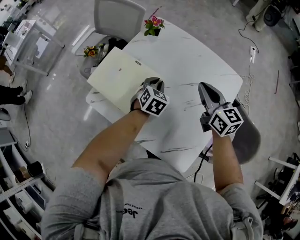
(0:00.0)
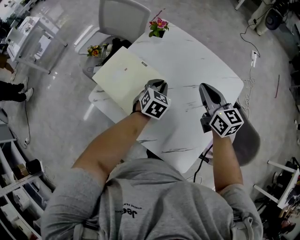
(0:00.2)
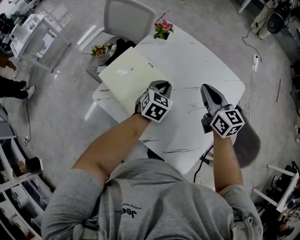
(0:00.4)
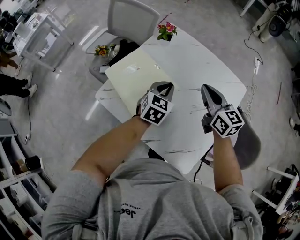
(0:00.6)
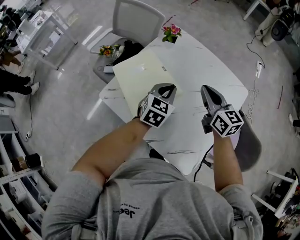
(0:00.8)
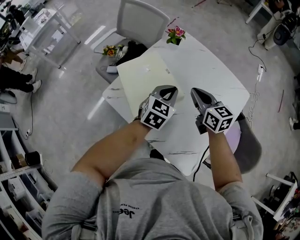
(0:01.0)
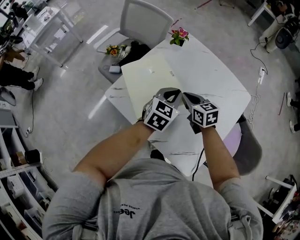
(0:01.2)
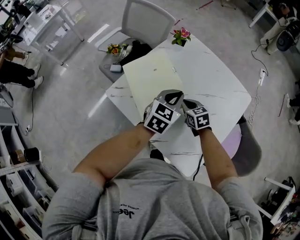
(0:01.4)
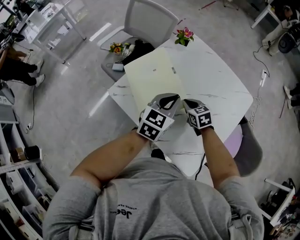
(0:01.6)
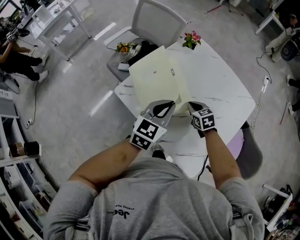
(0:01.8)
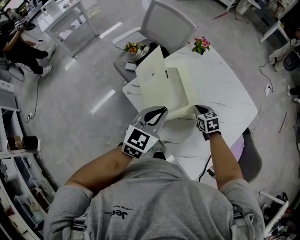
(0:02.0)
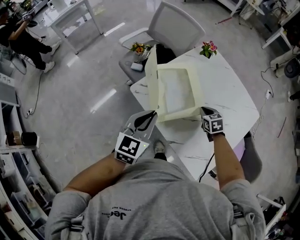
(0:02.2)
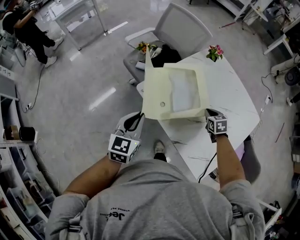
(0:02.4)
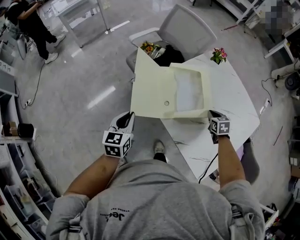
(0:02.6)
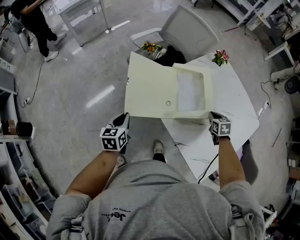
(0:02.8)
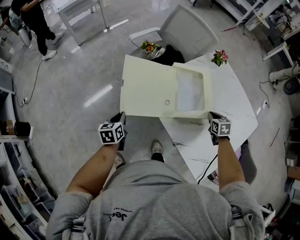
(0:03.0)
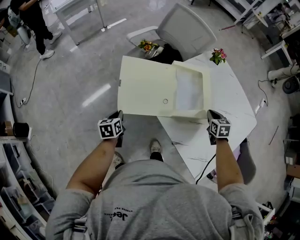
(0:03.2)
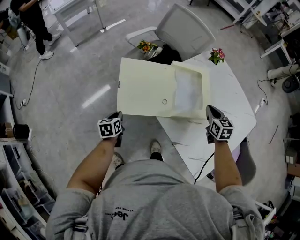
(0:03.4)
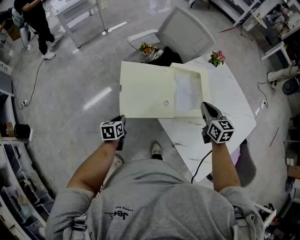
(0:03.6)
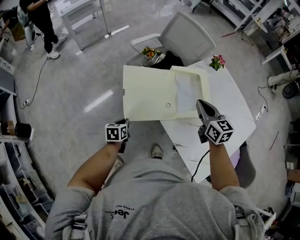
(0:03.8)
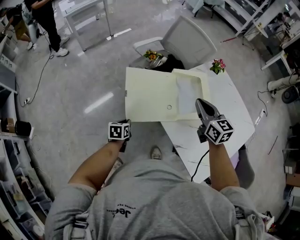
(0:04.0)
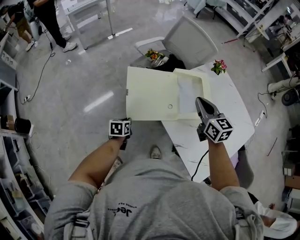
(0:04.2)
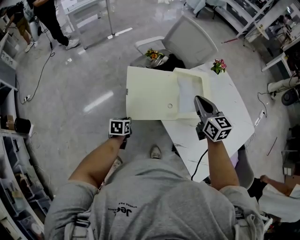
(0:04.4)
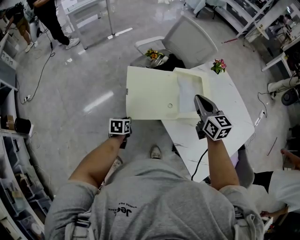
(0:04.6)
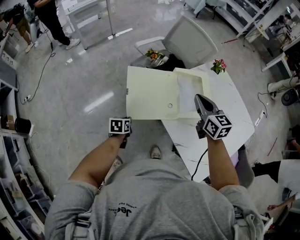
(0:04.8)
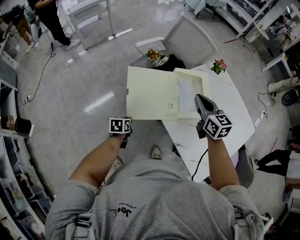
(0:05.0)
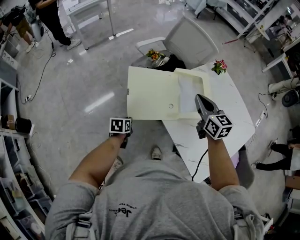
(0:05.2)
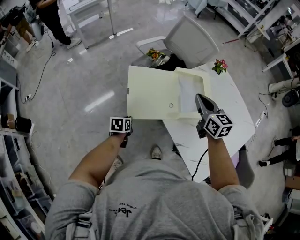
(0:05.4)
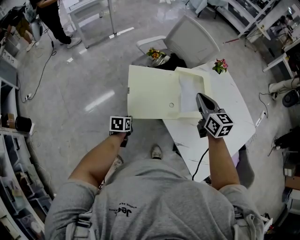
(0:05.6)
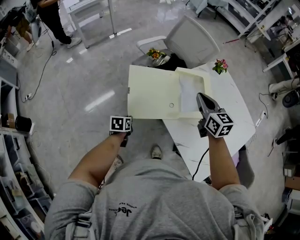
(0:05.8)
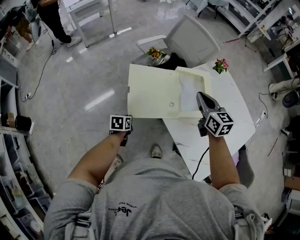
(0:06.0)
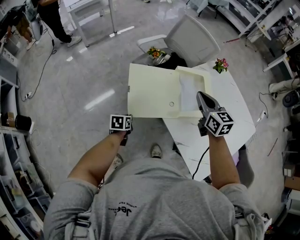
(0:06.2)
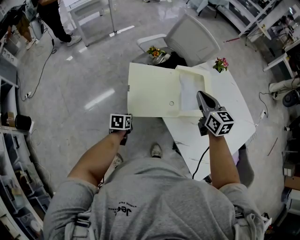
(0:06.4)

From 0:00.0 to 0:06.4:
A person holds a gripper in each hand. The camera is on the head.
From 0:00.0 to 0:01.6: The right gripper heads downward and to the left, covering some 20 cm, and angles its fingers downward, by roughly 30 degrees, while the left gripper heads upward, backward and to the left, covering roughly 15 cm, and turns by some 30 degrees.
From 0:01.6 to 0:03.2: The left gripper heads to the left and downward, covering roughly 50 cm, and rotates approximately 50 degrees.
From 0:03.2 to 0:04.8: The right gripper moves upward and to the left, about 25 cm, and points its fingers approximately 30 degrees further upward.
From 0:04.8 to 0:06.4: The two grippers keep their place.

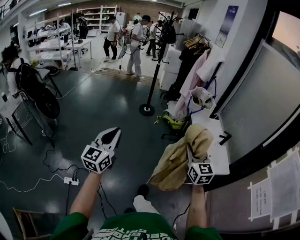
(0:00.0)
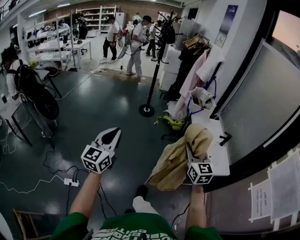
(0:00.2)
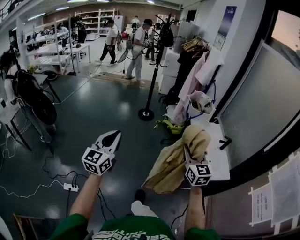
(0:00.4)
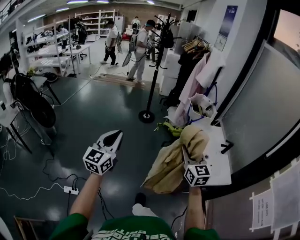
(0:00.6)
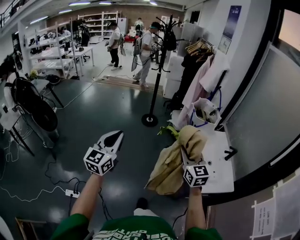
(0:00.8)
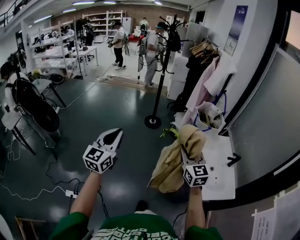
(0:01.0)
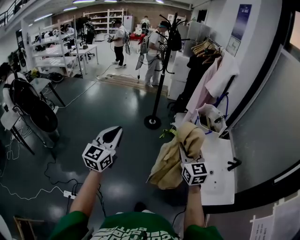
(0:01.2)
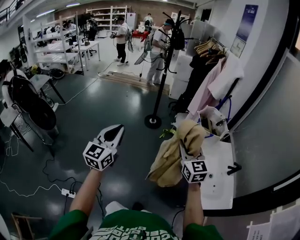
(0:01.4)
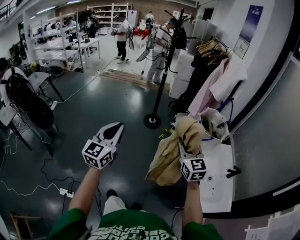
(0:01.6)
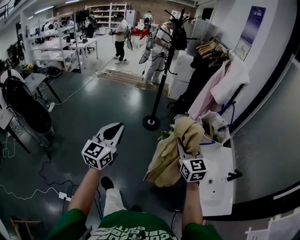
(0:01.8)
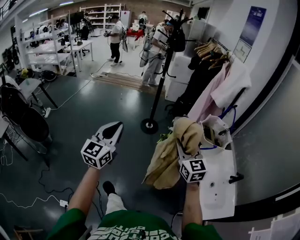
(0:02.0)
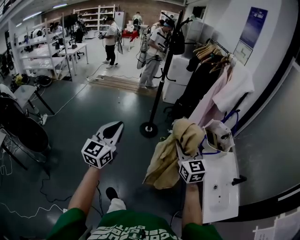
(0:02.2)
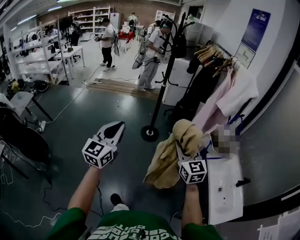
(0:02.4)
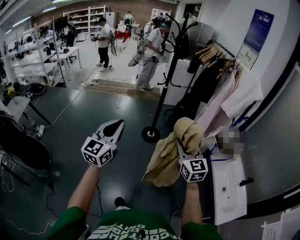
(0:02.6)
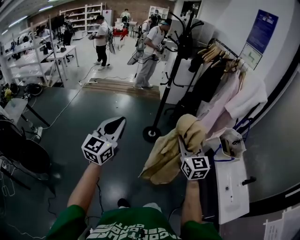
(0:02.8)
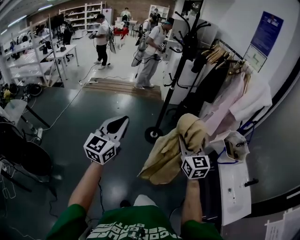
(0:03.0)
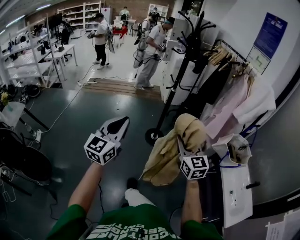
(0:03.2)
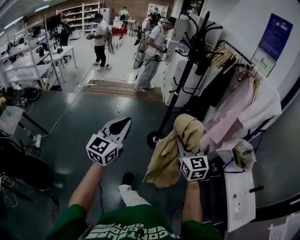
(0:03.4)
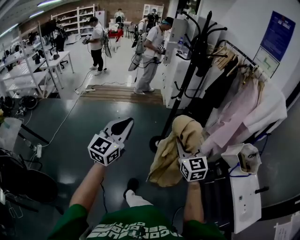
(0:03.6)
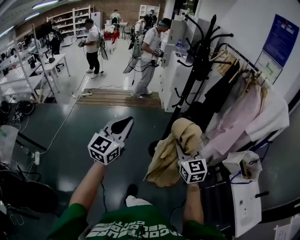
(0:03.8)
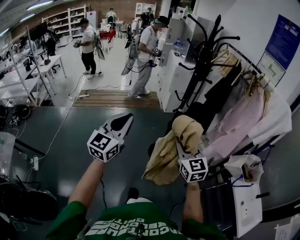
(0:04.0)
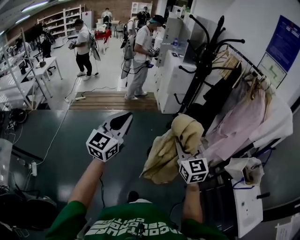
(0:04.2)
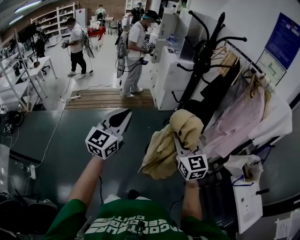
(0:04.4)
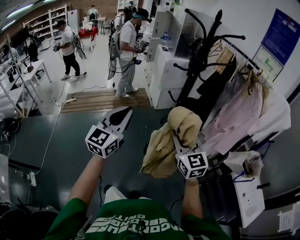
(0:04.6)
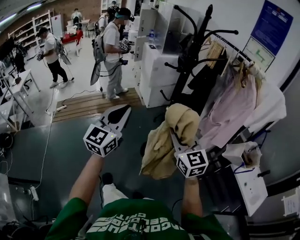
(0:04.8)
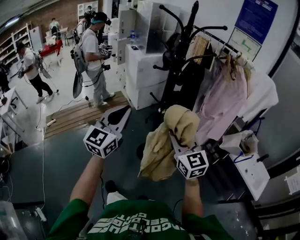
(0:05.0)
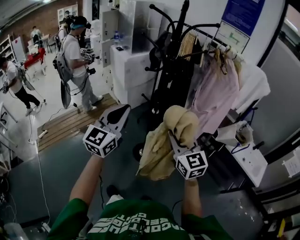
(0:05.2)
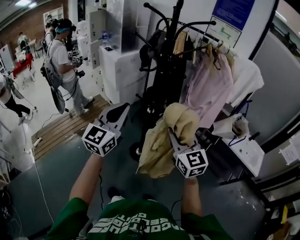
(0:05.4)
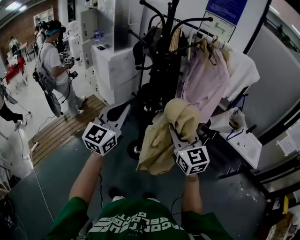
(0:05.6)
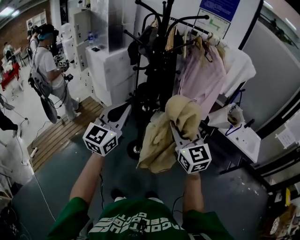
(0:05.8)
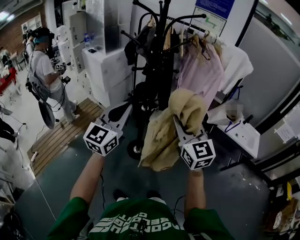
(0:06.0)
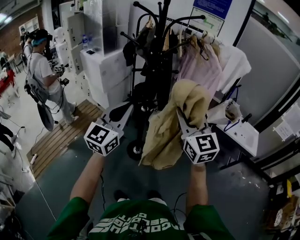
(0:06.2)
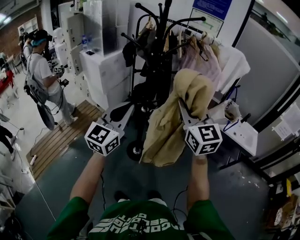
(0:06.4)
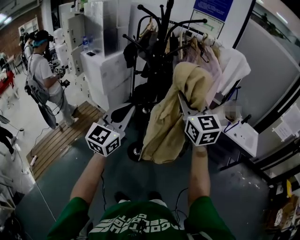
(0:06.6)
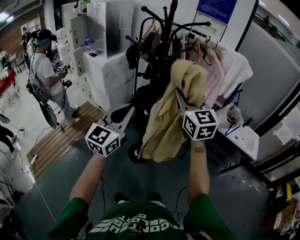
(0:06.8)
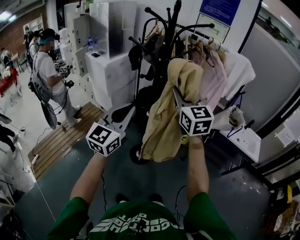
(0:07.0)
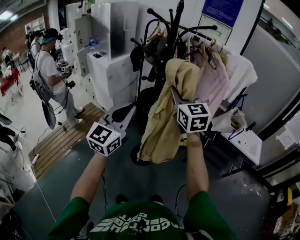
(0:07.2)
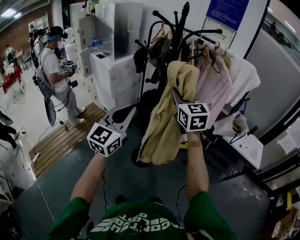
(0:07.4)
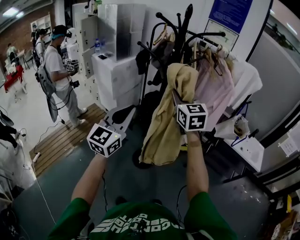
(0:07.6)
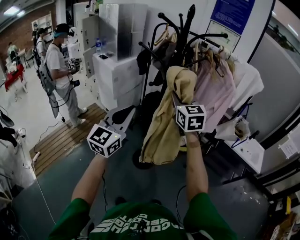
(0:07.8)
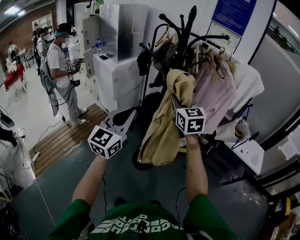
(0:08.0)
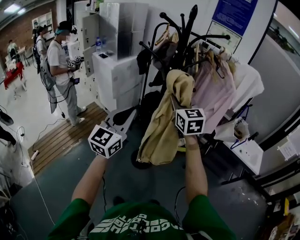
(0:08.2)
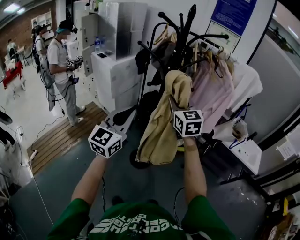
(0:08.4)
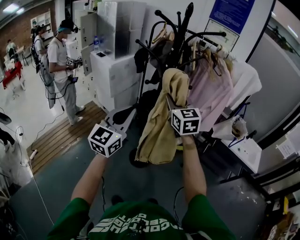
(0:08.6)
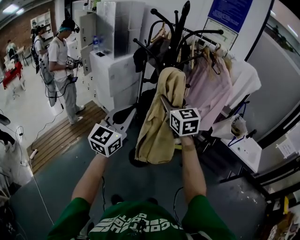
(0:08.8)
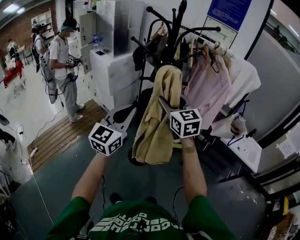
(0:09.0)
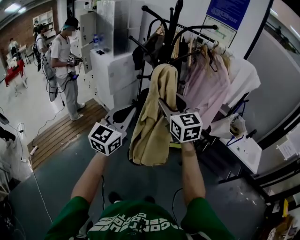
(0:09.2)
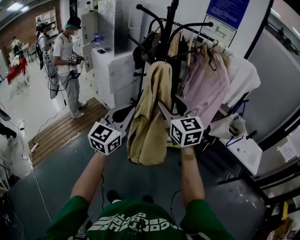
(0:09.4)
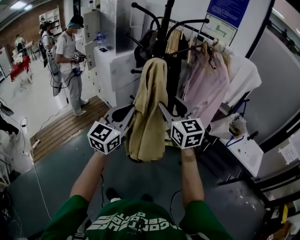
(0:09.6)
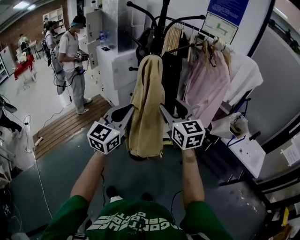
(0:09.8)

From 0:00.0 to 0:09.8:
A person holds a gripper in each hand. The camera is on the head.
From 0:00.0 to 0:01.4: Both grippers travel together forward, some 30 cm.
From 0:01.4 to 0:02.8: The two grippers go roughly 40 cm forward and to the left.
From 0:02.8 to 0:04.2: The pair of grippers is taken forward and to the left, roughly 40 cm.
From 0:04.2 to 0:05.6: The right gripper shifts by about 10 cm, and changes its angle by approximately 30 degrees; the left gripper ends up approximately 20 cm from where it was, and changes its angle by some 40 degrees.
From 0:05.6 to 0:07.0: The right gripper goes approximately 15 cm forward, upward and to the left.
From 0:07.0 to 0:08.4: The right gripper goes roughly 10 cm forward and downward.
From 0:08.4 to 0:09.8: The left gripper travels to the right by some 10 cm, while the right gripper moves backward and to the right, some 15 cm, and opens up.

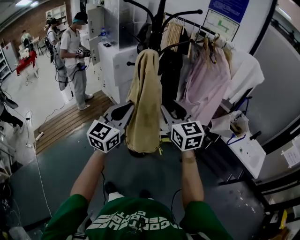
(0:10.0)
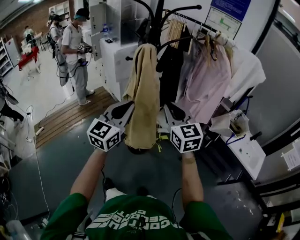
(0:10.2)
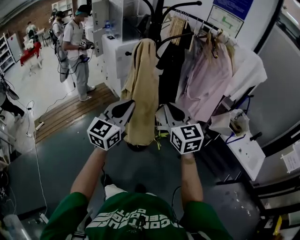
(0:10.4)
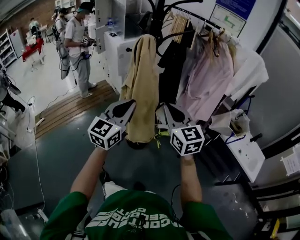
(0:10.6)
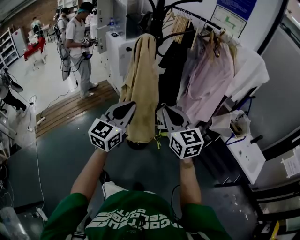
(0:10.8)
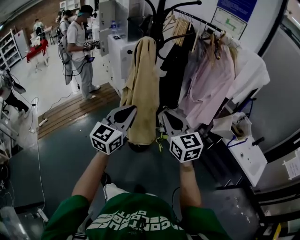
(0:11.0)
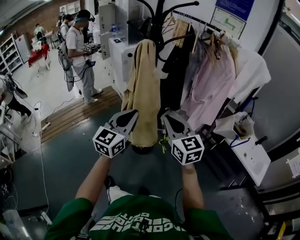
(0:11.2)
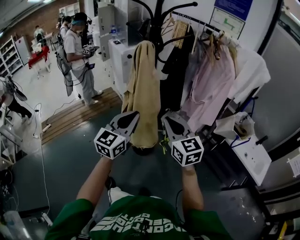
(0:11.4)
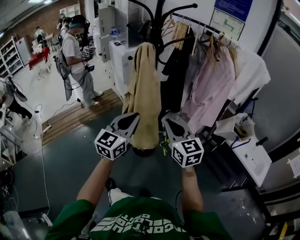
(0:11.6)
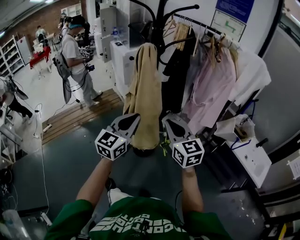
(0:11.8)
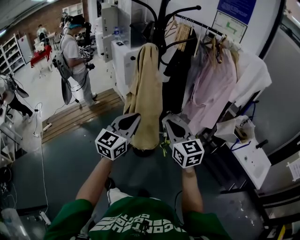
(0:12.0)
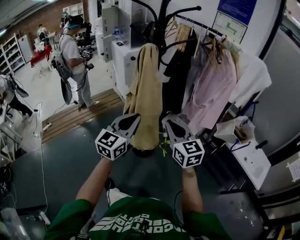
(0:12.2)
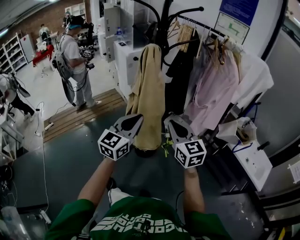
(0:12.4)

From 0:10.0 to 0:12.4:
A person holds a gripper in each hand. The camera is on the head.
From 0:10.0 to 0:11.2: The right gripper is displaced backward and downward by approximately 10 cm, and closes. Meanwhile the left gripper ends up roughly 10 cm from where it was.
From 0:11.2 to 0:12.4: The grippers move only a little.

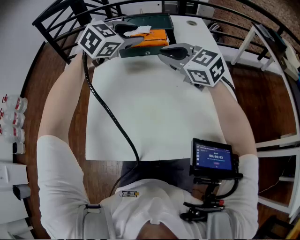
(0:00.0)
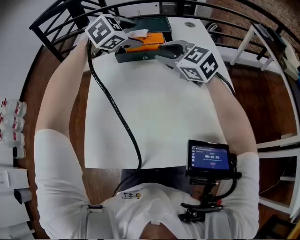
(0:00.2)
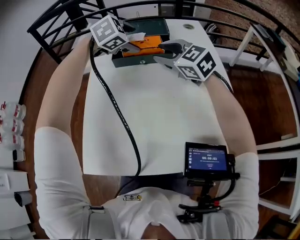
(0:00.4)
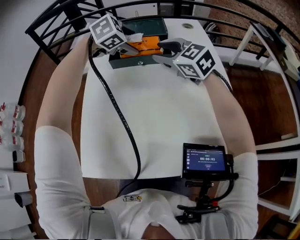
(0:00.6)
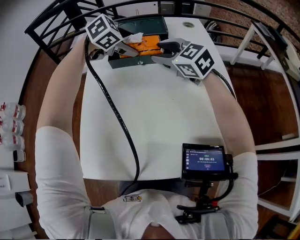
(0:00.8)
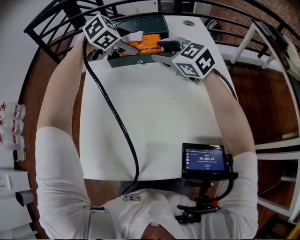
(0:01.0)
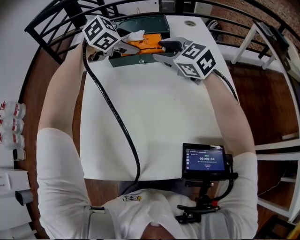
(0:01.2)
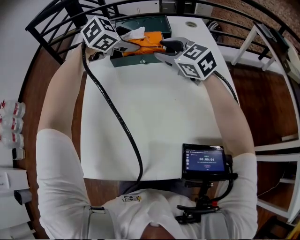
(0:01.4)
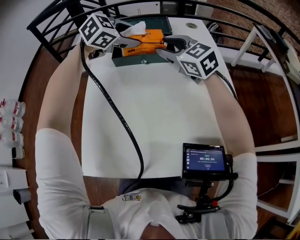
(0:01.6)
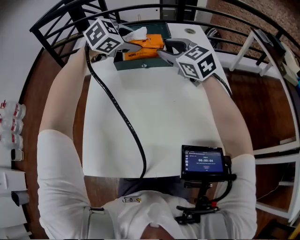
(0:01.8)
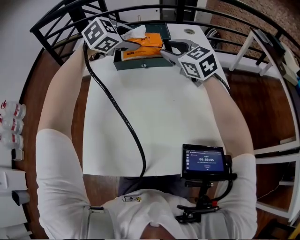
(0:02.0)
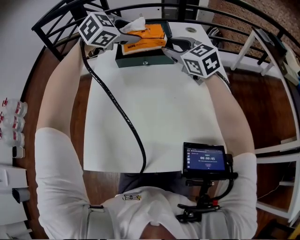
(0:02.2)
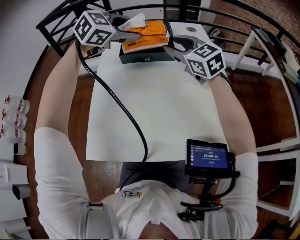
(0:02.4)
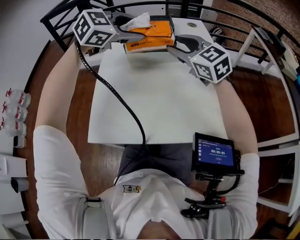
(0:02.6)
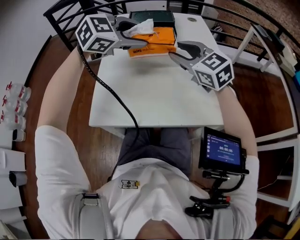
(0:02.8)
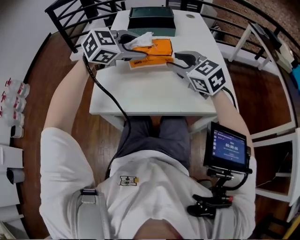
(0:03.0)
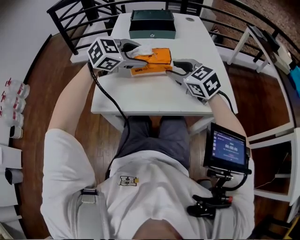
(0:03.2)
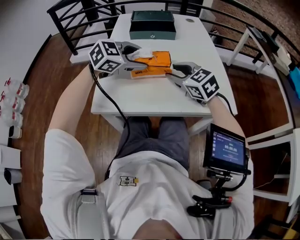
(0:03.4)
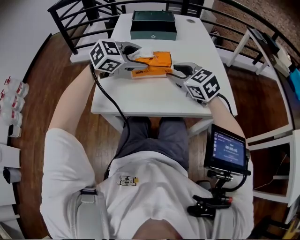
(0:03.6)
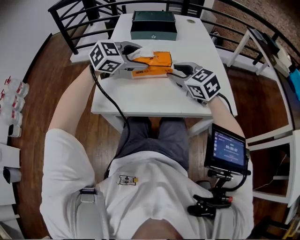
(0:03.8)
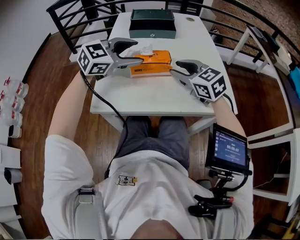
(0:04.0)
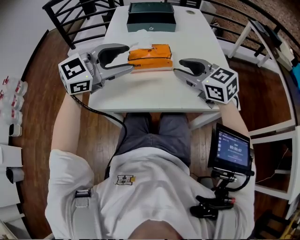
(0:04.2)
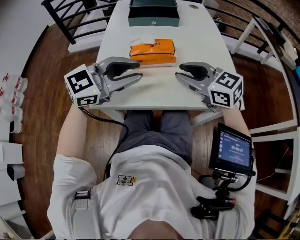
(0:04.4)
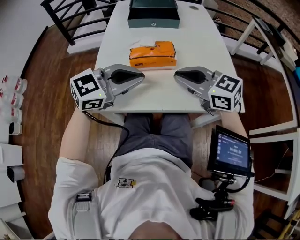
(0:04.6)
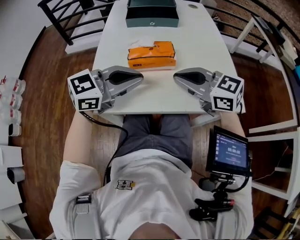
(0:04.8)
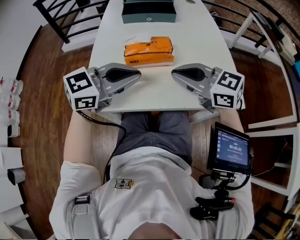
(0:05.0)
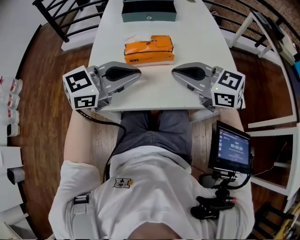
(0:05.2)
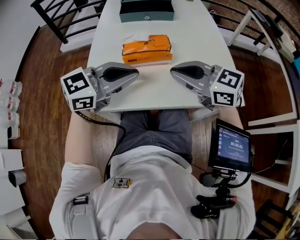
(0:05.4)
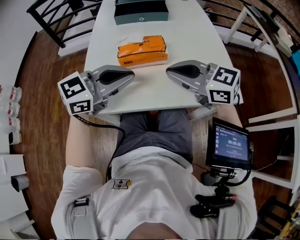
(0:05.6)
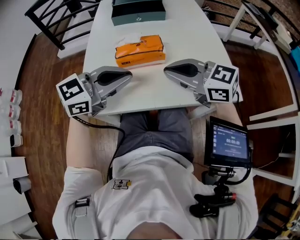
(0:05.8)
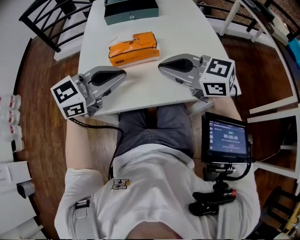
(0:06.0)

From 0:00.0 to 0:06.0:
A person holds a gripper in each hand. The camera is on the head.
From 0:00.0 to 0:01.6: The left gripper opens, then closes once more. The right gripper heads forward, covering about 10 cm, and opens up.
From 0:01.6 to 0:03.0: Both grippers move backward, approximately 20 cm.
From 0:03.0 to 0:04.4: The left gripper heads backward, covering roughly 10 cm, turns by about 20 degrees, and closes its fingers, while the right gripper is displaced backward by some 5 cm.
From 0:04.4 to 0:06.0: The right gripper closes its fingers.
